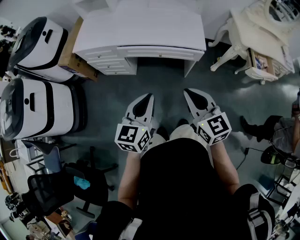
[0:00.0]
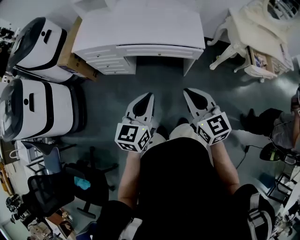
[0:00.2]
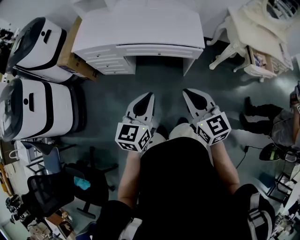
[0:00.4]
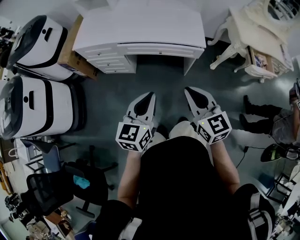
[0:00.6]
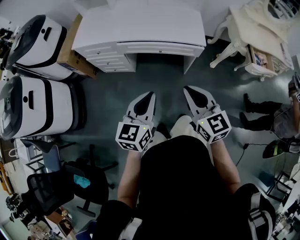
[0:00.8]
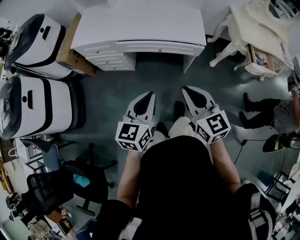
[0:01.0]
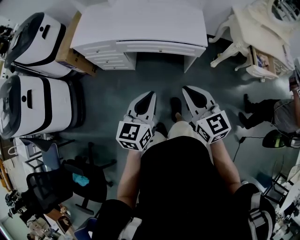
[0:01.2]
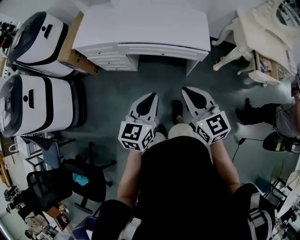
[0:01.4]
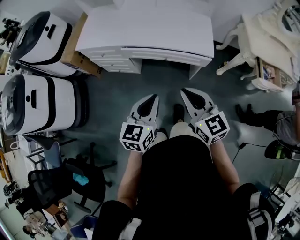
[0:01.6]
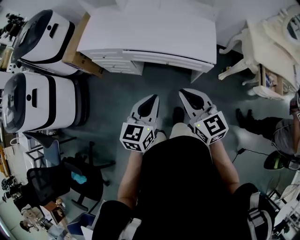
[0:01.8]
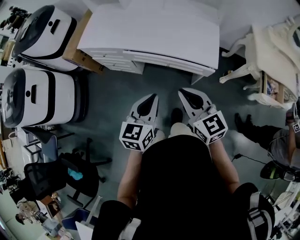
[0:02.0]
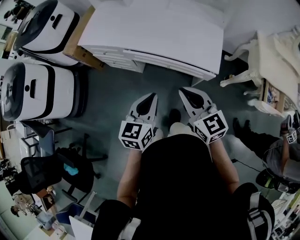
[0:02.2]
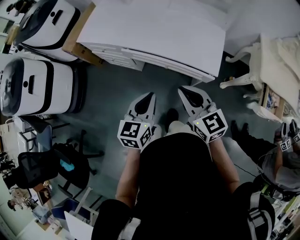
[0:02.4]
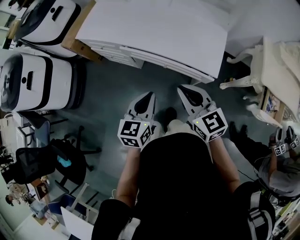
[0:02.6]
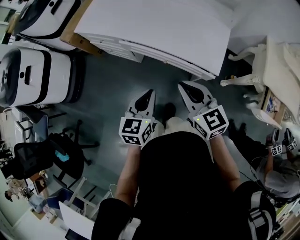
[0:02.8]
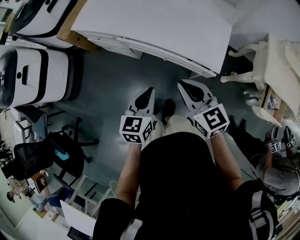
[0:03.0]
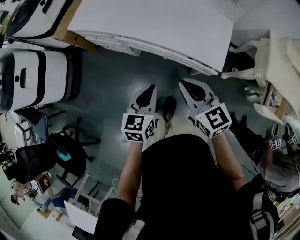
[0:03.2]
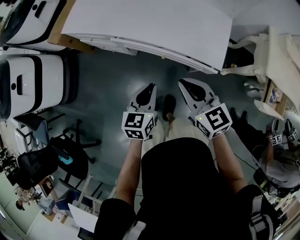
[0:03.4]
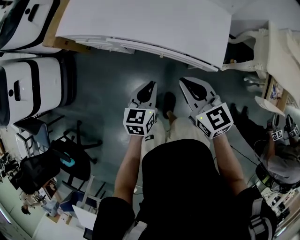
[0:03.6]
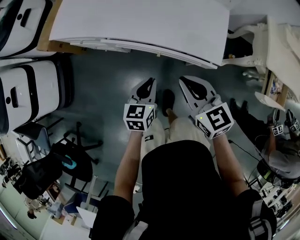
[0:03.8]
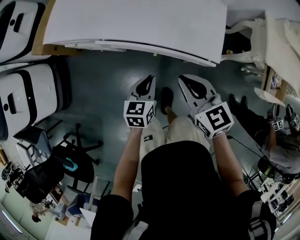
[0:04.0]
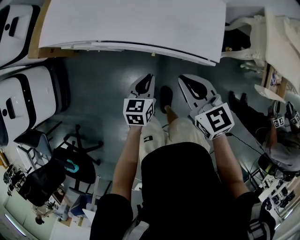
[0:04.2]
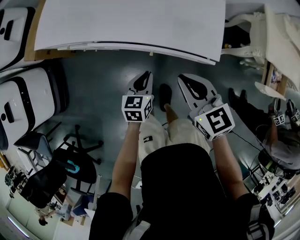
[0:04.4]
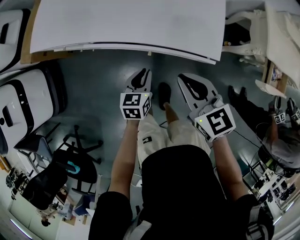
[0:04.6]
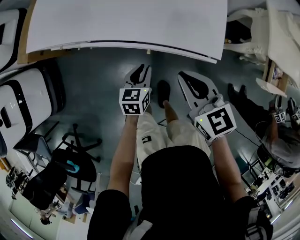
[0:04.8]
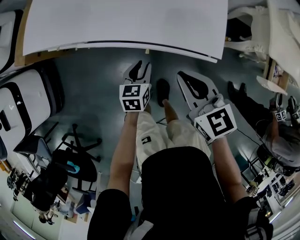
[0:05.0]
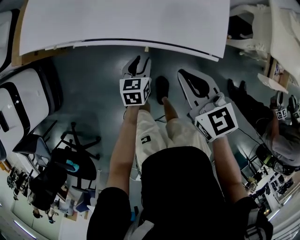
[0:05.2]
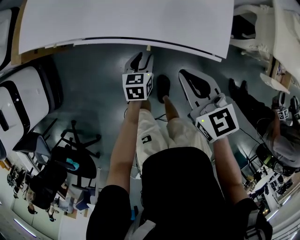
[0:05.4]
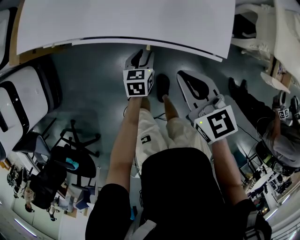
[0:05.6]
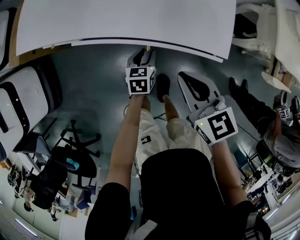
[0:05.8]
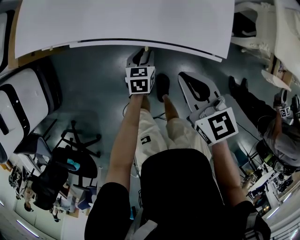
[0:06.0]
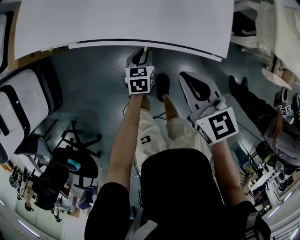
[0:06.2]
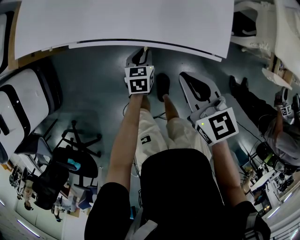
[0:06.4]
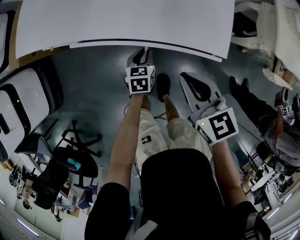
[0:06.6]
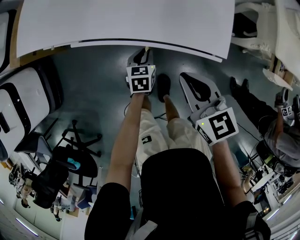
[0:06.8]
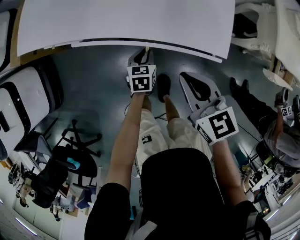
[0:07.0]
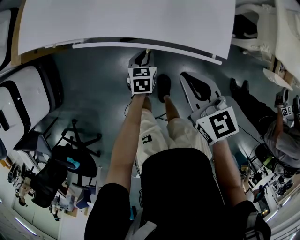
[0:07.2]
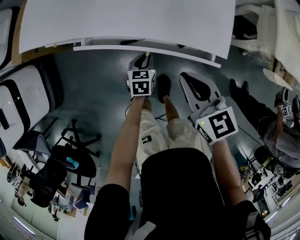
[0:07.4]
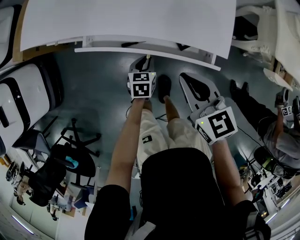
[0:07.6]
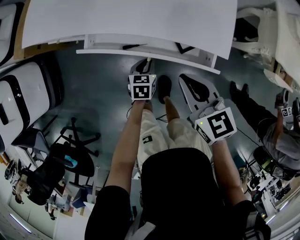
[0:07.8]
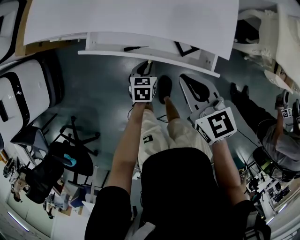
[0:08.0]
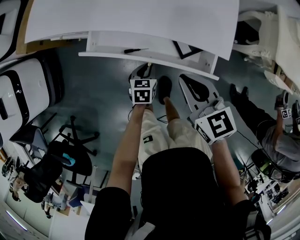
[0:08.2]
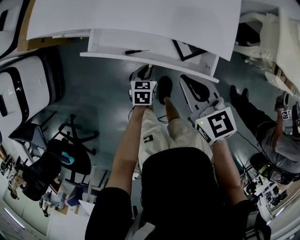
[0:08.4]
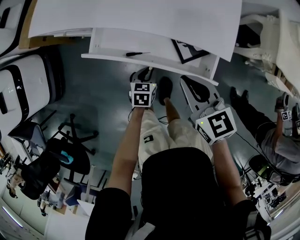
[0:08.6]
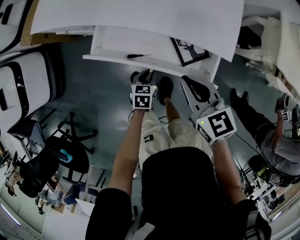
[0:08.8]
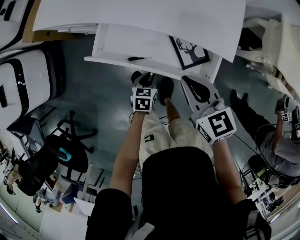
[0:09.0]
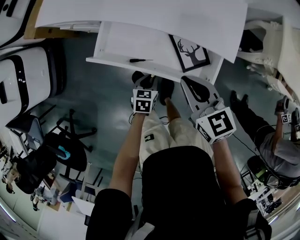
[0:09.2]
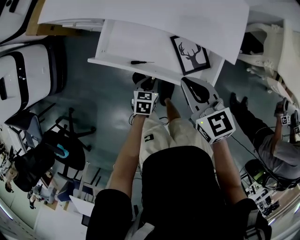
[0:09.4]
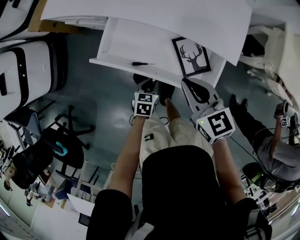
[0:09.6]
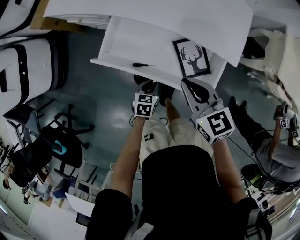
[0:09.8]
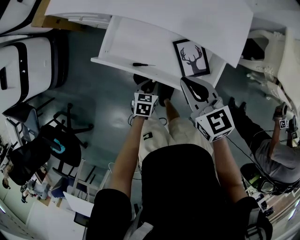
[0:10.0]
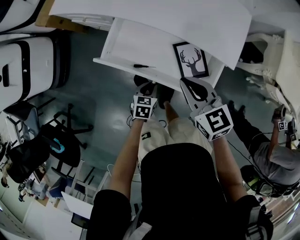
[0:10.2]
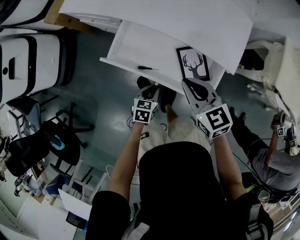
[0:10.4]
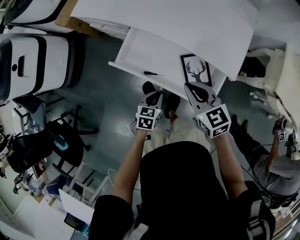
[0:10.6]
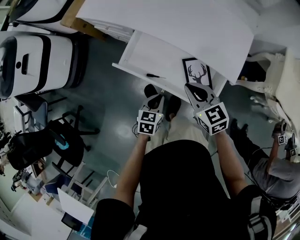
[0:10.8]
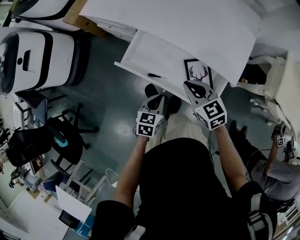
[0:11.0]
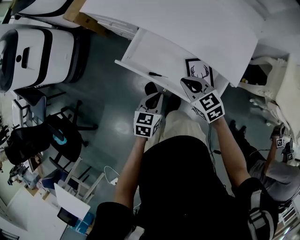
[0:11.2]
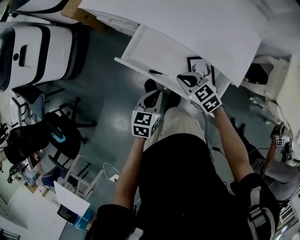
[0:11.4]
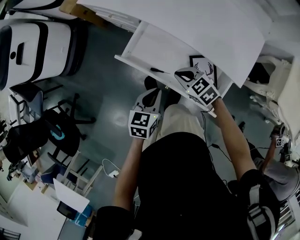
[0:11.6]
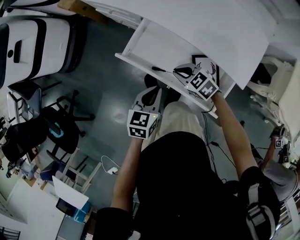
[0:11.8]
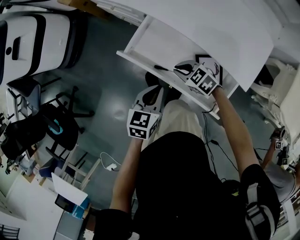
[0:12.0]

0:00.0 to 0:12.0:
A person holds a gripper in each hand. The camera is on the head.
0:00.0 to 0:01.6: The grippers both shift forward by approximately 5 cm.
0:01.6 to 0:03.0: The left gripper moves forward, to the right and downward, roughly 20 cm, and swivels about 20 degrees. Meanwhile the right gripper shifts some 20 cm forward and to the right.
0:03.0 to 0:04.4: The left gripper heads downward and forward, covering approximately 20 cm, while the right gripper shifts some 10 cm forward and downward.
0:04.4 to 0:06.0: The right gripper heads downward, covering some 10 cm; the left gripper heads downward and forward, covering approximately 15 cm, and opens its fingers.
0:06.0 to 0:07.6: The grippers stay close to where they were, moving slightly.
0:07.6 to 0:09.0: The left gripper travels backward by roughly 10 cm.
0:09.0 to 0:10.4: The left gripper travels backward by approximately 5 cm.
0:10.4 to 0:12.0: The right gripper shifts some 15 cm downward, and swivels some 40 degrees; the left gripper shifts approximately 15 cm upward.

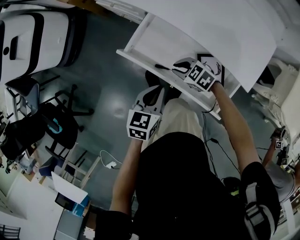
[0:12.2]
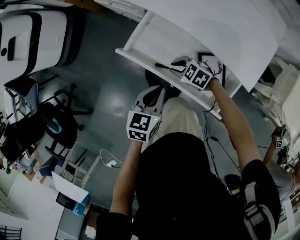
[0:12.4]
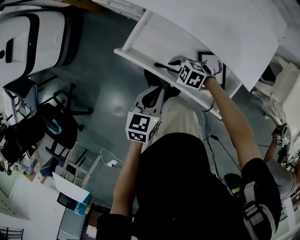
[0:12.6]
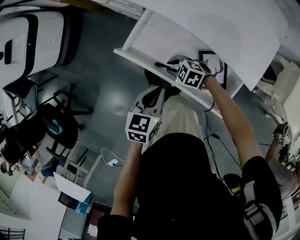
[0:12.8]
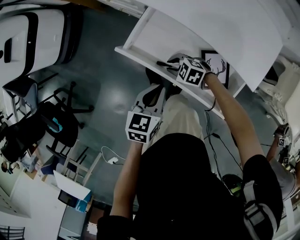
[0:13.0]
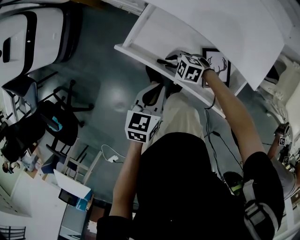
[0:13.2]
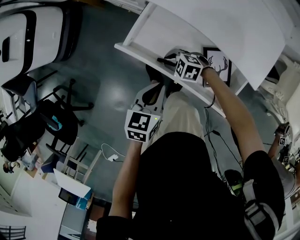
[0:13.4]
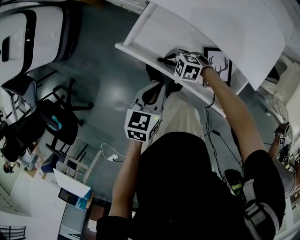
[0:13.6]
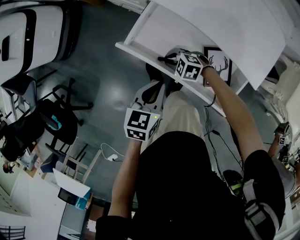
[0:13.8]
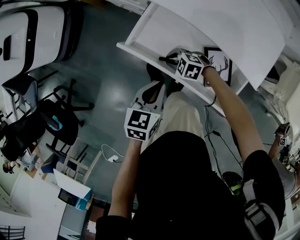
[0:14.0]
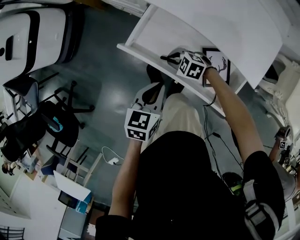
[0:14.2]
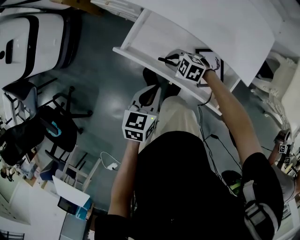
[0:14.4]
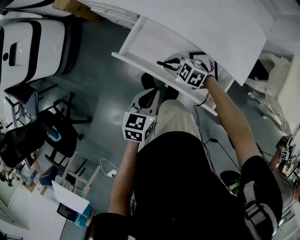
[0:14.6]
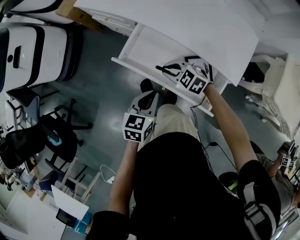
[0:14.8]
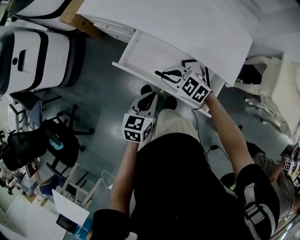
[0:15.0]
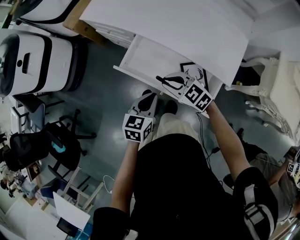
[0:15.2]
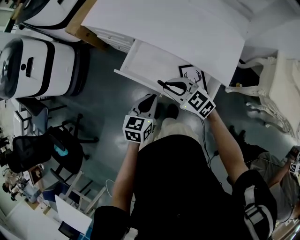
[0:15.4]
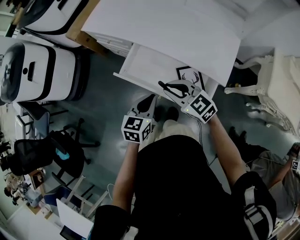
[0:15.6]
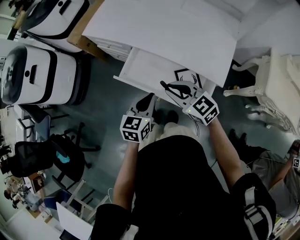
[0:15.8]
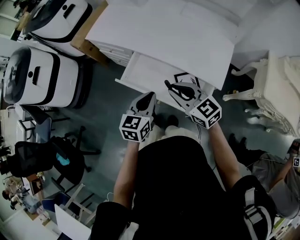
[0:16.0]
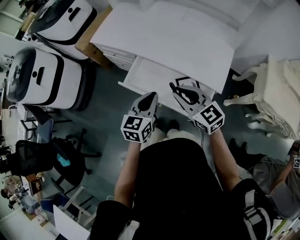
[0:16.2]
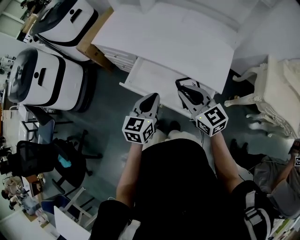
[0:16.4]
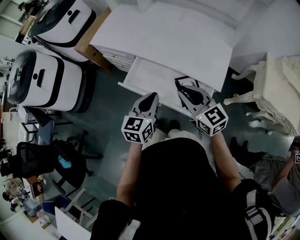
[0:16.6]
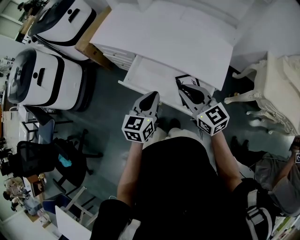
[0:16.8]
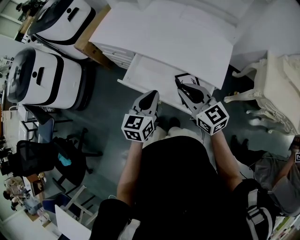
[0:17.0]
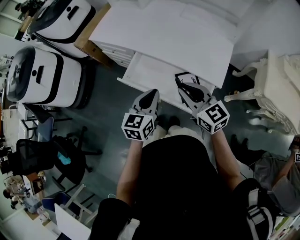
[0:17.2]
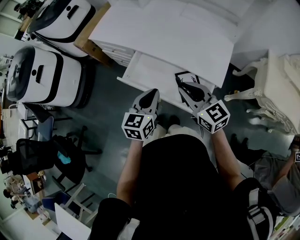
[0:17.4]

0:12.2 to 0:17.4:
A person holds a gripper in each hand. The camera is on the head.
0:12.2 to 0:14.0: The right gripper goes some 10 cm downward.
0:14.0 to 0:15.6: The right gripper moves upward, approximately 35 cm, and angles its fingers upward, by about 30 degrees. The left gripper moves upward, approximately 15 cm.
0:15.6 to 0:17.4: The left gripper is displaced upward by approximately 10 cm. The right gripper goes about 10 cm upward and to the right, and turns by about 20 degrees.

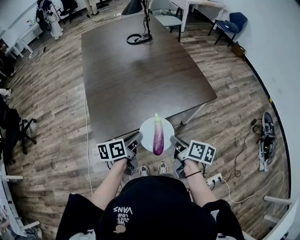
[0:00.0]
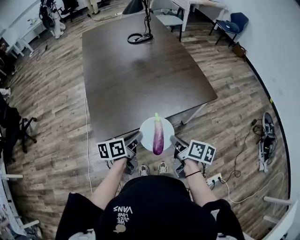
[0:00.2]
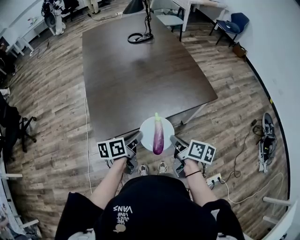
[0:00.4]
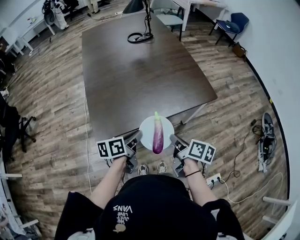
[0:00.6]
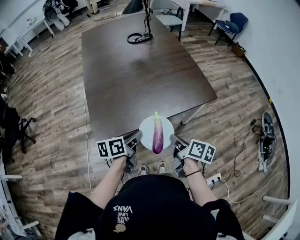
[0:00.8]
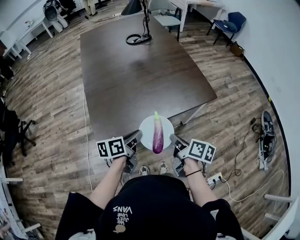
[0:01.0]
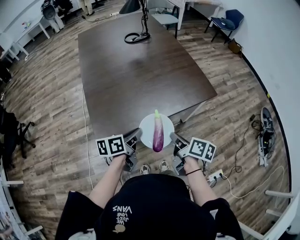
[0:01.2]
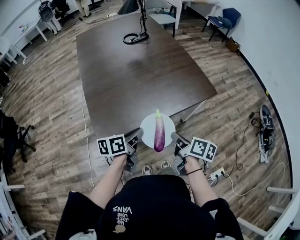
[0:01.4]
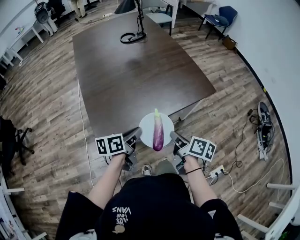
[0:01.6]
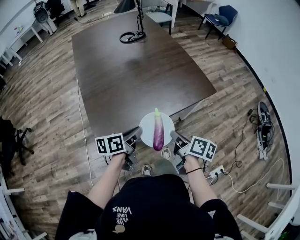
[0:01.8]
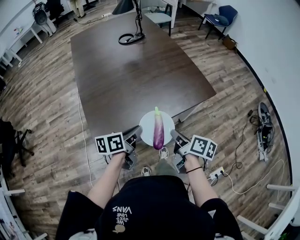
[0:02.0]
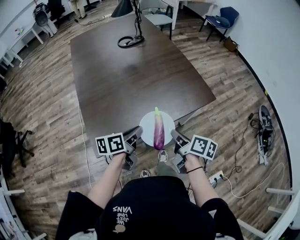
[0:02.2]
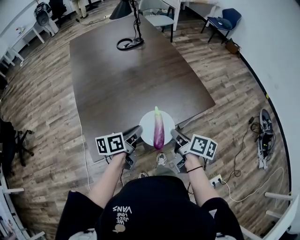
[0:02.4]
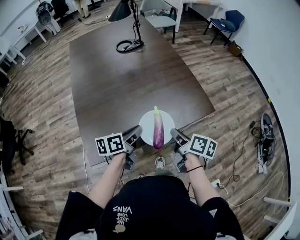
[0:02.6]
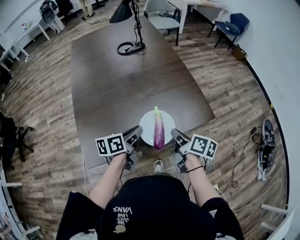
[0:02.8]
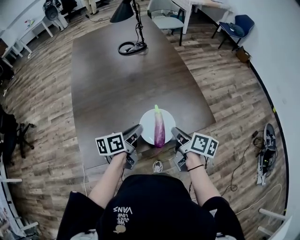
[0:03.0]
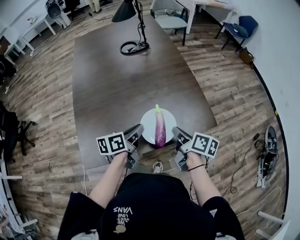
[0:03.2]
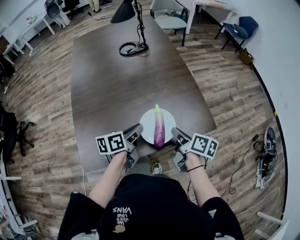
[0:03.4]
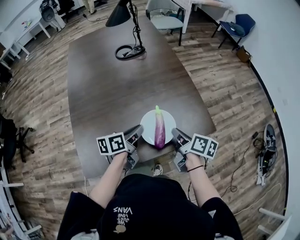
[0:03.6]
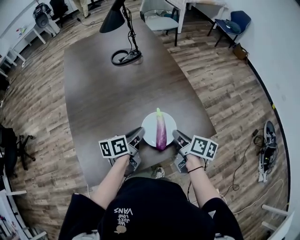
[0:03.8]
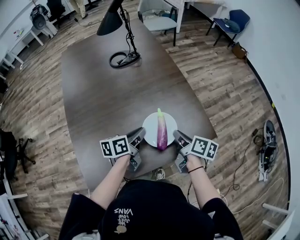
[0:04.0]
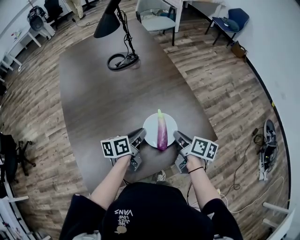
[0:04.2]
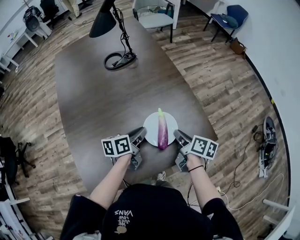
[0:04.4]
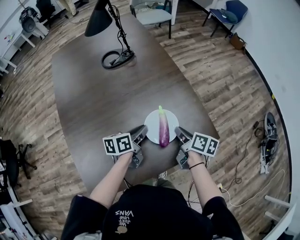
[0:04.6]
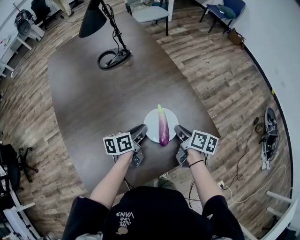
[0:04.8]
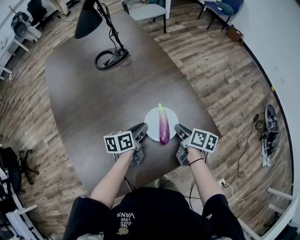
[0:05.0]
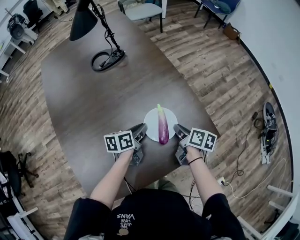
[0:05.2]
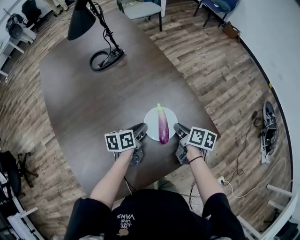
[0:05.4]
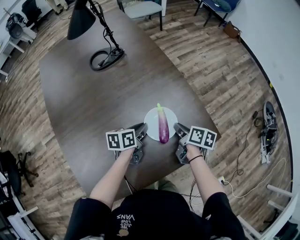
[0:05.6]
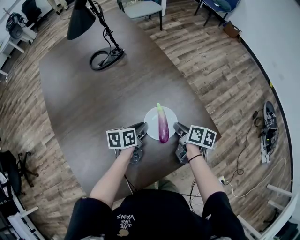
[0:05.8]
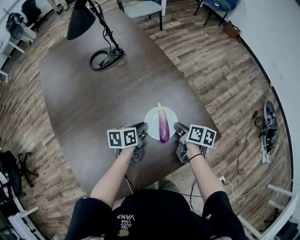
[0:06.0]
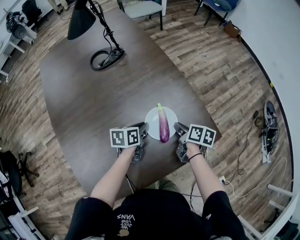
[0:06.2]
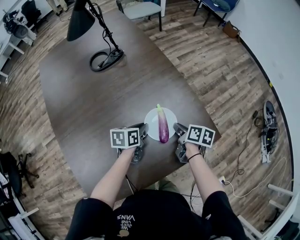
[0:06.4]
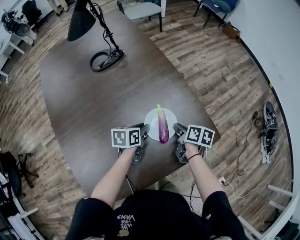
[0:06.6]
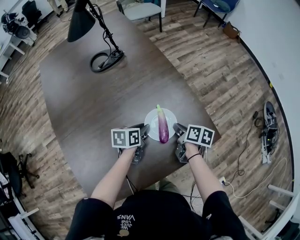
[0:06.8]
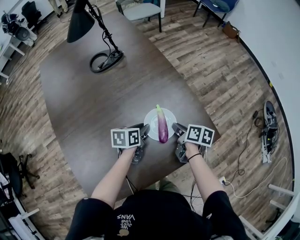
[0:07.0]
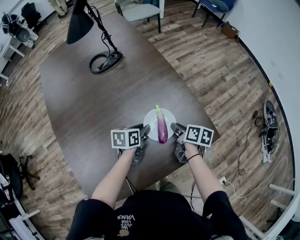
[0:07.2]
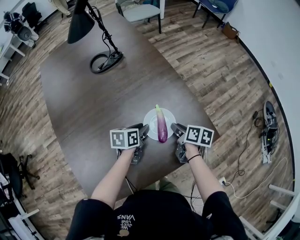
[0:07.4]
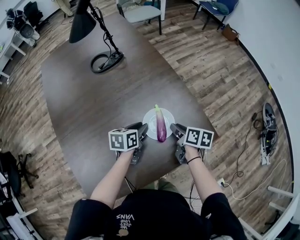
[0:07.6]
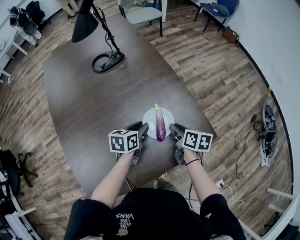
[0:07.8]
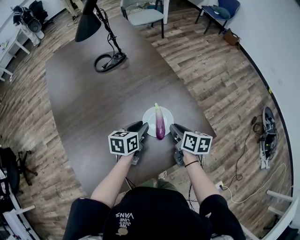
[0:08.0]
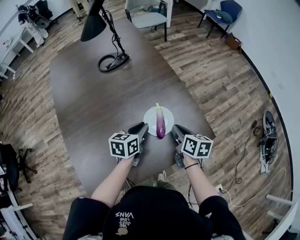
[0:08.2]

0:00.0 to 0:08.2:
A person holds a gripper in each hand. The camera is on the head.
0:00.0 to 0:01.6: The grippers move only a little.
0:01.6 to 0:03.2: Both grippers move forward, approximately 20 cm.
0:03.2 to 0:05.0: Both grippers move forward and downward, some 20 cm.
0:05.0 to 0:06.6: The grippers move only a little.
0:06.6 to 0:08.2: The grippers both shift upward by some 10 cm. The right gripper changes its angle by about 20 degrees.
